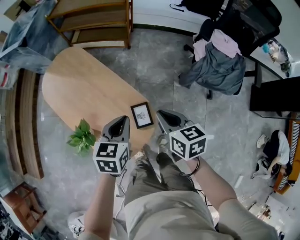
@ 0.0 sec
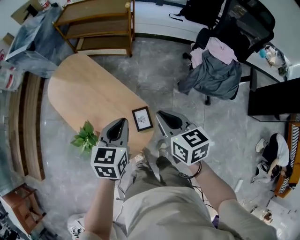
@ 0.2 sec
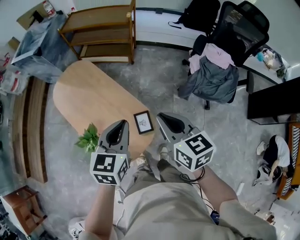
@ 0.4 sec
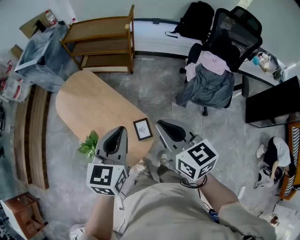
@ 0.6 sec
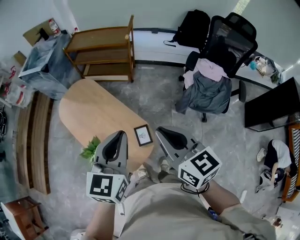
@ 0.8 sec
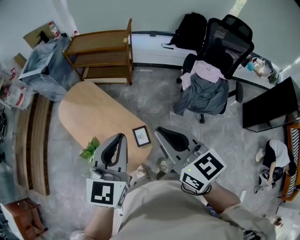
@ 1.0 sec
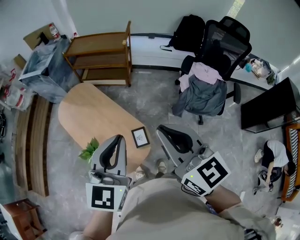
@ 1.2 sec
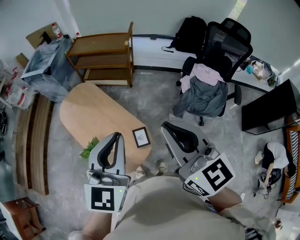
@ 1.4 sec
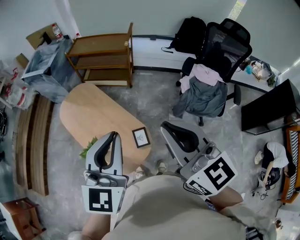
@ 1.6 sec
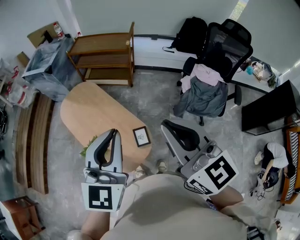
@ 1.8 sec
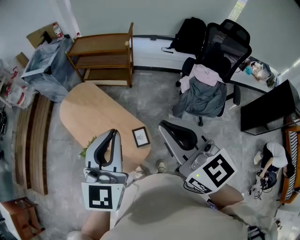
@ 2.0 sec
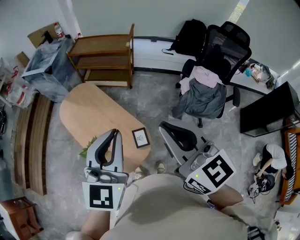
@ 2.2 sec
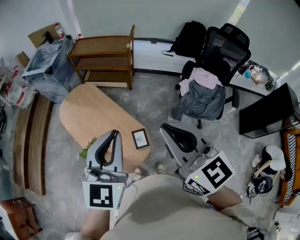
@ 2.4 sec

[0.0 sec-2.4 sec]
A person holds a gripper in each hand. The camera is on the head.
0.0 sec to 1.2 sec: Both grippers travel together upward, roughly 35 cm. The left gripper rotates about 30 degrees; the right gripper changes its angle by approximately 40 degrees.
1.2 sec to 2.4 sec: The grippers move only a little.

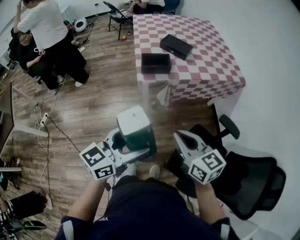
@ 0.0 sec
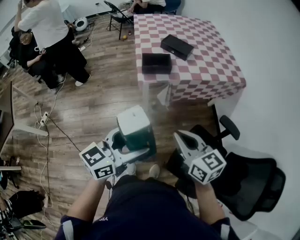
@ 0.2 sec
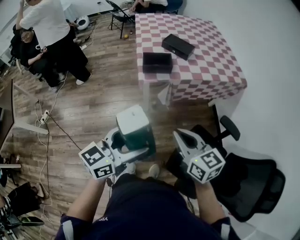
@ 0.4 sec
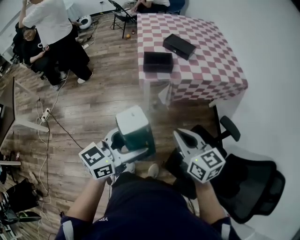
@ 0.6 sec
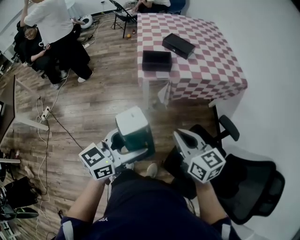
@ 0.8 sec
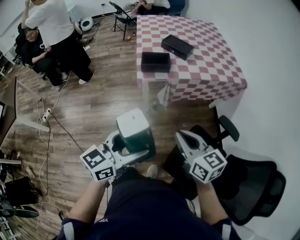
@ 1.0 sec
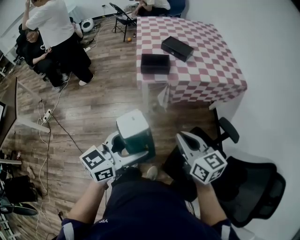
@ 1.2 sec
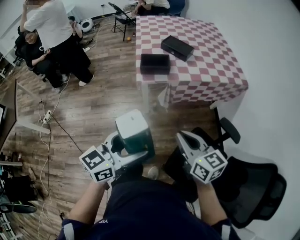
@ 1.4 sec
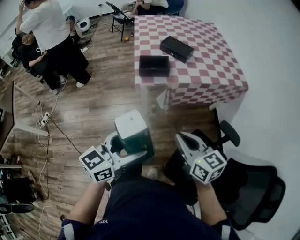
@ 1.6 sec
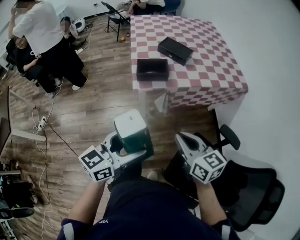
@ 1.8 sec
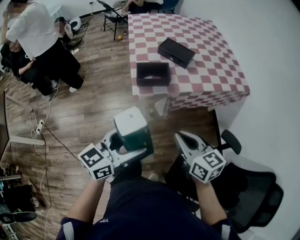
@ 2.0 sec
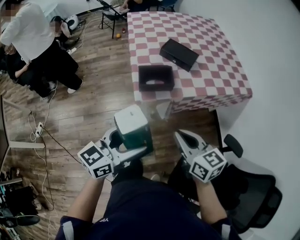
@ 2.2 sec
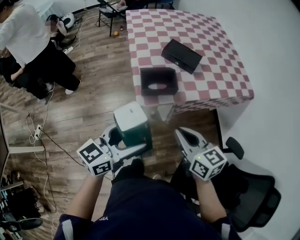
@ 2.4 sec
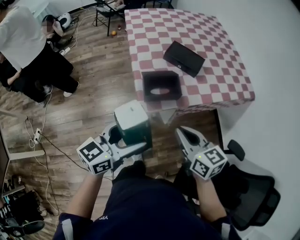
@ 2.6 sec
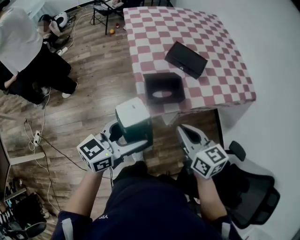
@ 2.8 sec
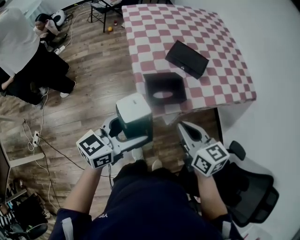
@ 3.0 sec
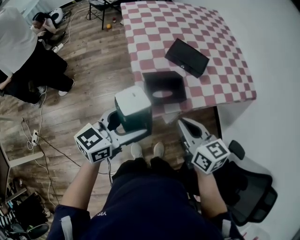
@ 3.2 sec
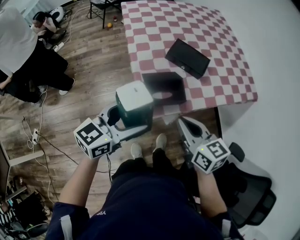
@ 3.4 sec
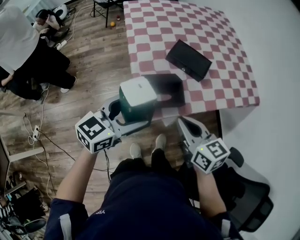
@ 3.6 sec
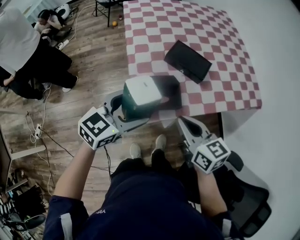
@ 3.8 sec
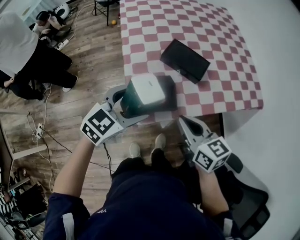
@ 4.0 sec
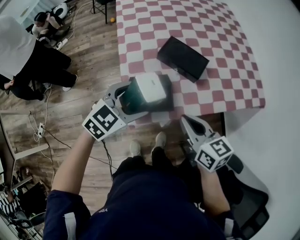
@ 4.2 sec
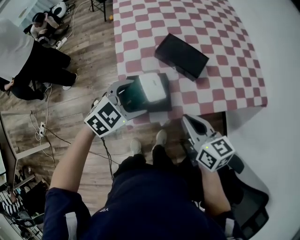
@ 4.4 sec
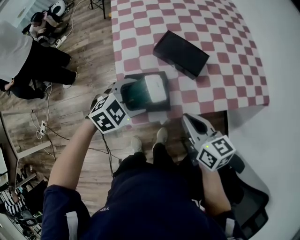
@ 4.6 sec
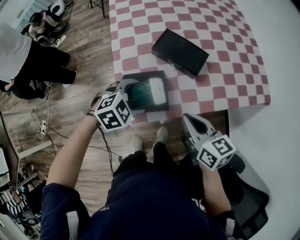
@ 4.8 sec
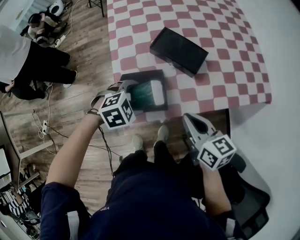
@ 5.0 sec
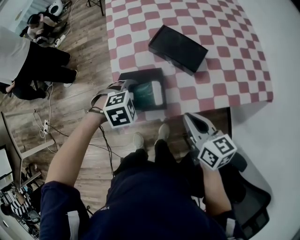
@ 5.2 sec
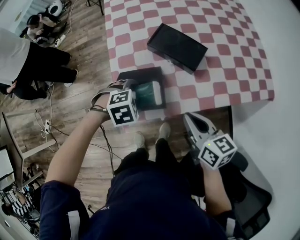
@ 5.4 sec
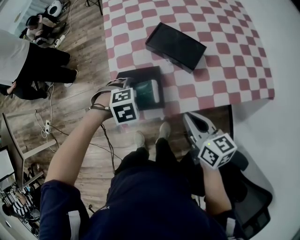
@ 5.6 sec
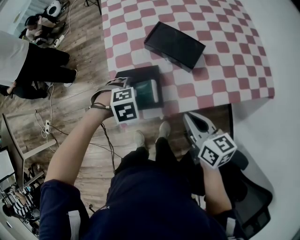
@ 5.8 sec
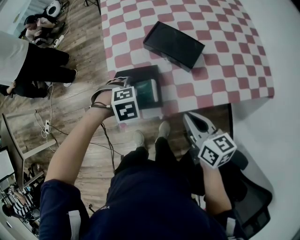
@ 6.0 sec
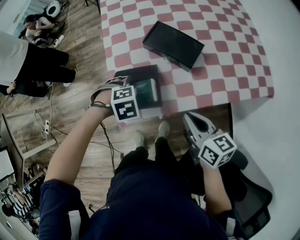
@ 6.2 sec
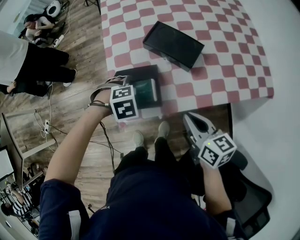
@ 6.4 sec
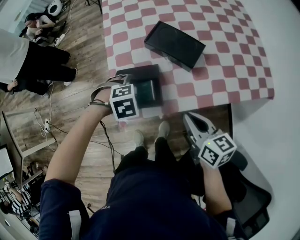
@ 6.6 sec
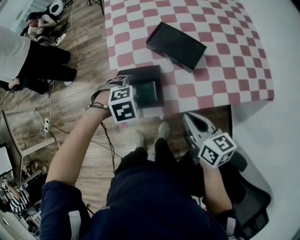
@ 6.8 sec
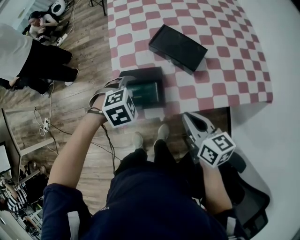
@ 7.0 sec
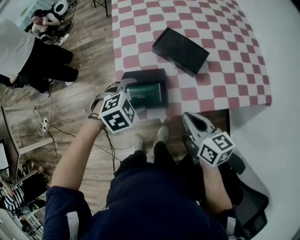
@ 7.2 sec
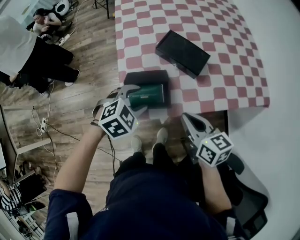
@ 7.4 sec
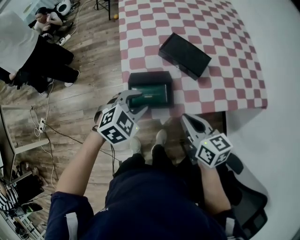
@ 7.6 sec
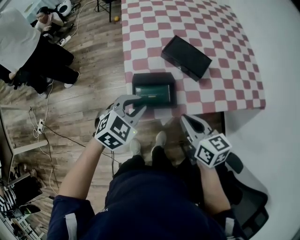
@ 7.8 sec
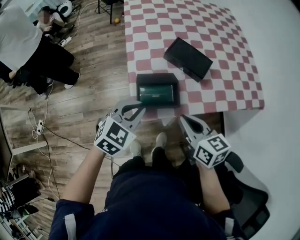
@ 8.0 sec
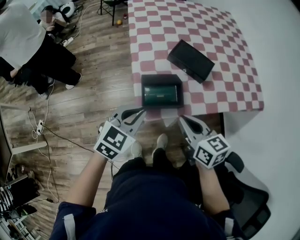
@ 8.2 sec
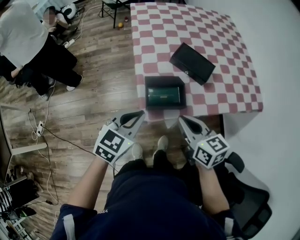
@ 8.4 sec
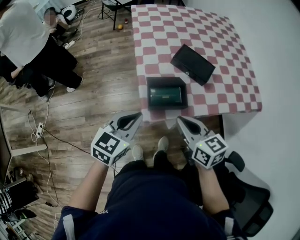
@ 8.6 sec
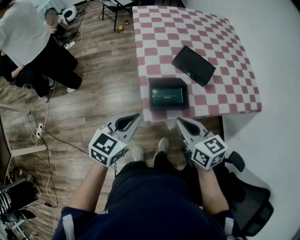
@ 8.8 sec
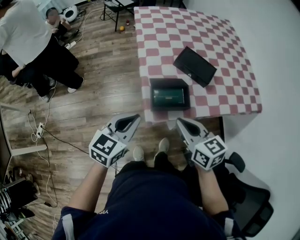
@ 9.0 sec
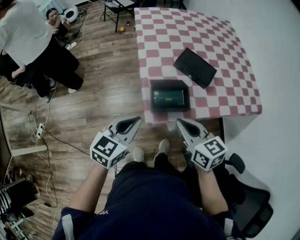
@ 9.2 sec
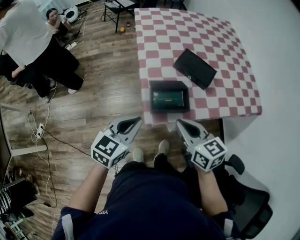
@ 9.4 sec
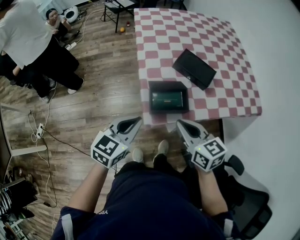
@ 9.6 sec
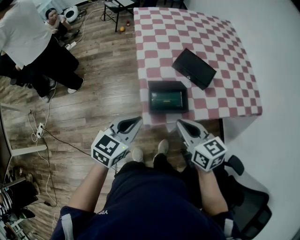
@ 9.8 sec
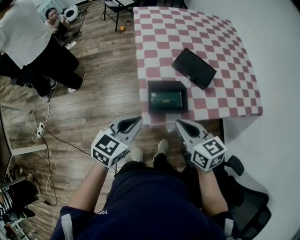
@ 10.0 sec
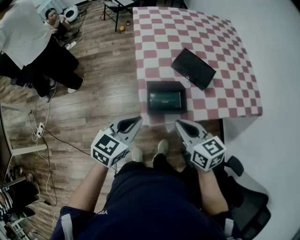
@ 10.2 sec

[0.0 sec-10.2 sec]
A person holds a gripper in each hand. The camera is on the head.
0.0 sec to 1.4 sec: The right gripper is displaced to the right by about 5 cm.
1.4 sec to 3.0 sec: Both grippers travel together forward and to the left, about 35 cm.
3.0 sec to 4.4 sec: The right gripper moves to the right and downward, about 15 cm. The left gripper travels to the right, downward and forward by some 20 cm, and tips its fingers downward by some 30 degrees.
4.4 sec to 5.8 sec: The right gripper changes place by some 10 cm, while the left gripper moves downward, about 10 cm, and points its fingers roughly 40 degrees further downward.
5.8 sec to 7.2 sec: The left gripper moves upward, some 5 cm, and swivels about 20 degrees.
7.2 sec to 8.8 sec: The left gripper moves to the left, backward and upward, about 20 cm, points its fingers about 40 degrees further upward, and closes up. The right gripper moves to the left and backward, approximately 20 cm.
8.8 sec to 10.2 sec: The grippers make only small movements.

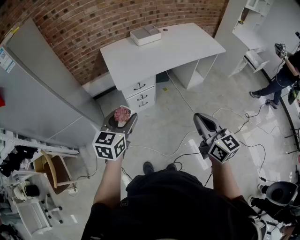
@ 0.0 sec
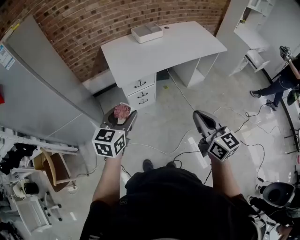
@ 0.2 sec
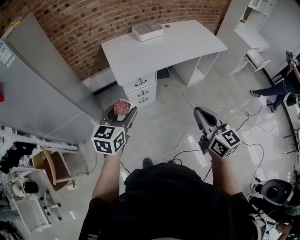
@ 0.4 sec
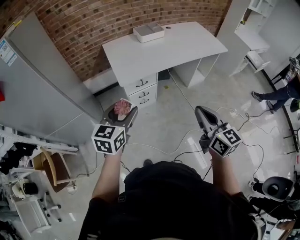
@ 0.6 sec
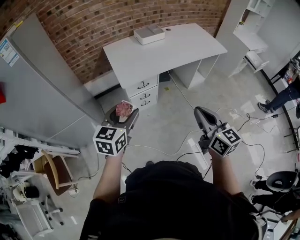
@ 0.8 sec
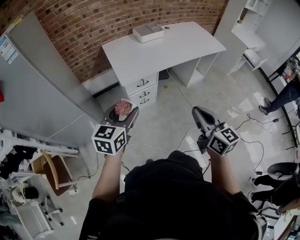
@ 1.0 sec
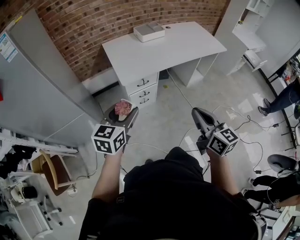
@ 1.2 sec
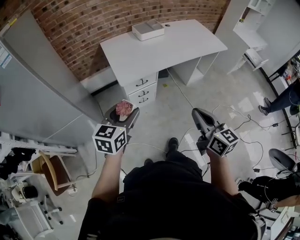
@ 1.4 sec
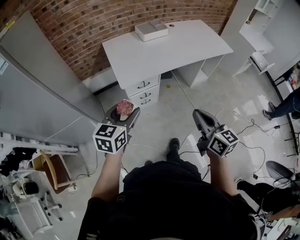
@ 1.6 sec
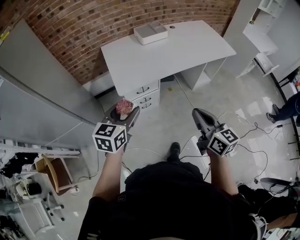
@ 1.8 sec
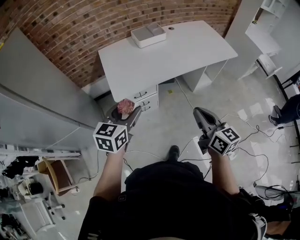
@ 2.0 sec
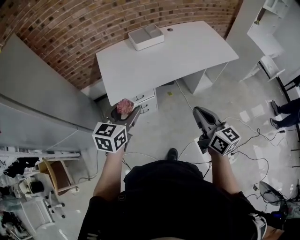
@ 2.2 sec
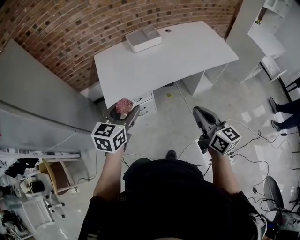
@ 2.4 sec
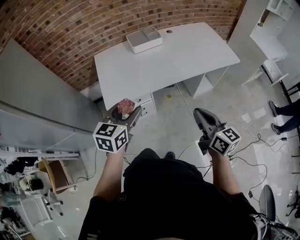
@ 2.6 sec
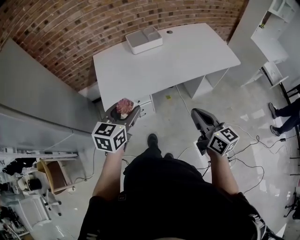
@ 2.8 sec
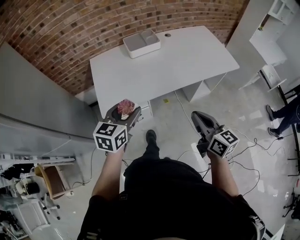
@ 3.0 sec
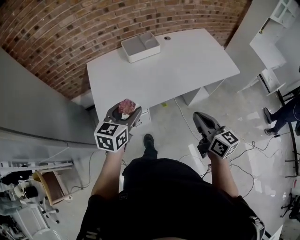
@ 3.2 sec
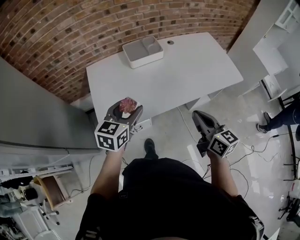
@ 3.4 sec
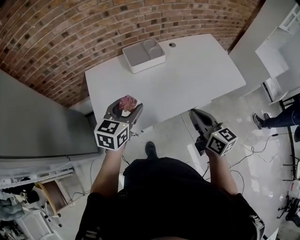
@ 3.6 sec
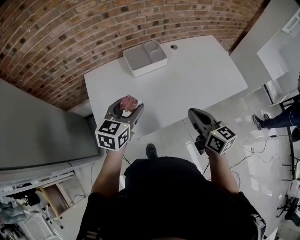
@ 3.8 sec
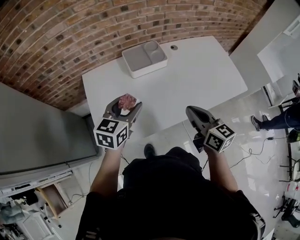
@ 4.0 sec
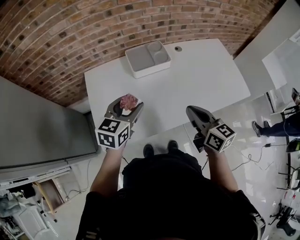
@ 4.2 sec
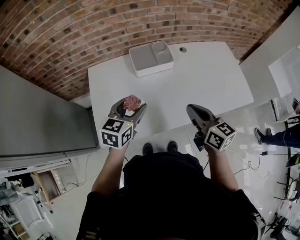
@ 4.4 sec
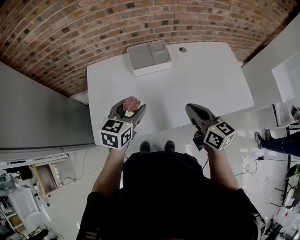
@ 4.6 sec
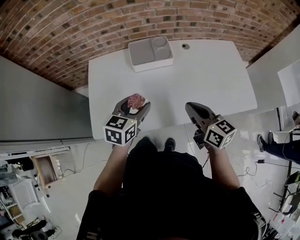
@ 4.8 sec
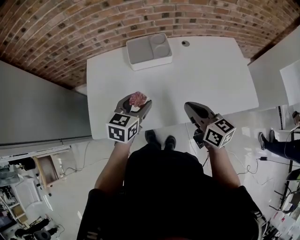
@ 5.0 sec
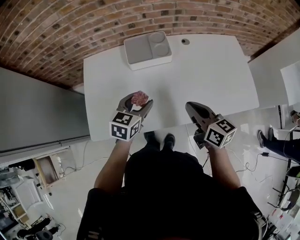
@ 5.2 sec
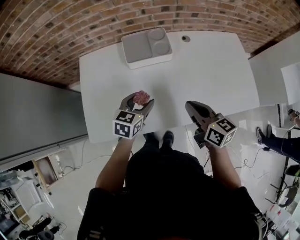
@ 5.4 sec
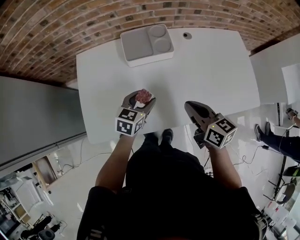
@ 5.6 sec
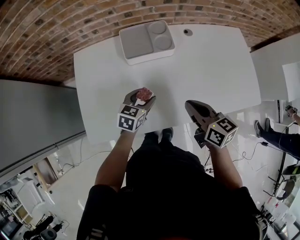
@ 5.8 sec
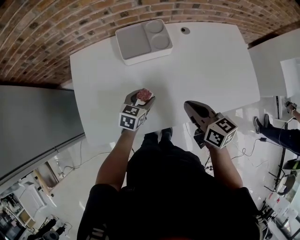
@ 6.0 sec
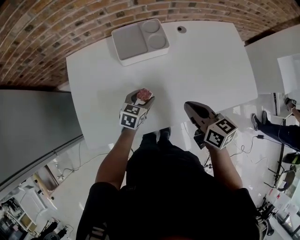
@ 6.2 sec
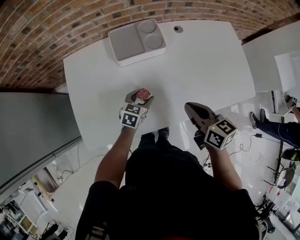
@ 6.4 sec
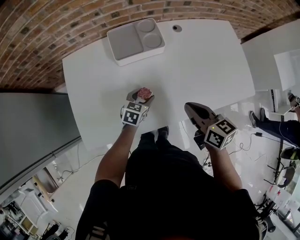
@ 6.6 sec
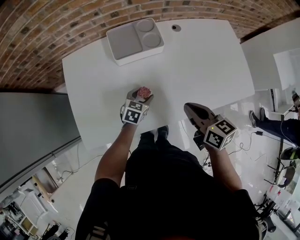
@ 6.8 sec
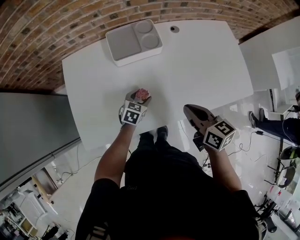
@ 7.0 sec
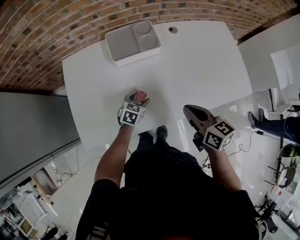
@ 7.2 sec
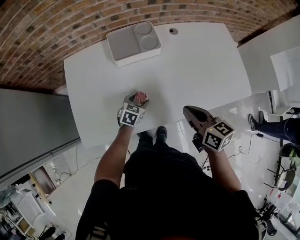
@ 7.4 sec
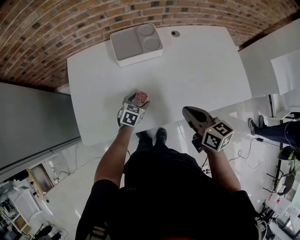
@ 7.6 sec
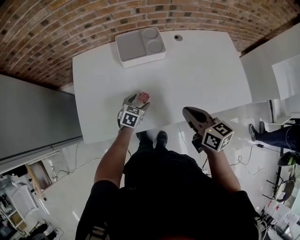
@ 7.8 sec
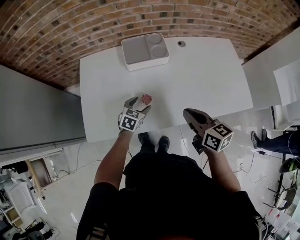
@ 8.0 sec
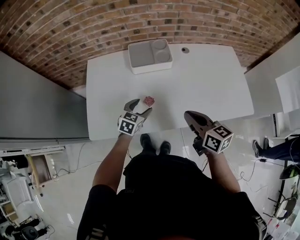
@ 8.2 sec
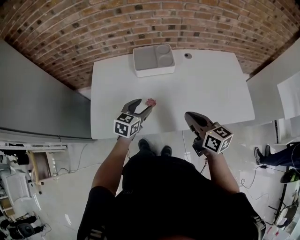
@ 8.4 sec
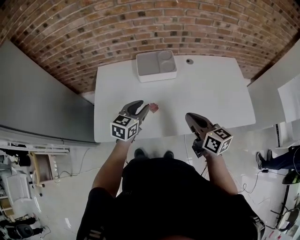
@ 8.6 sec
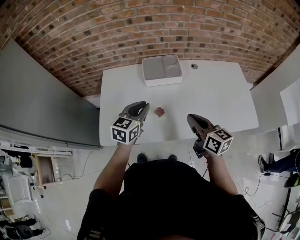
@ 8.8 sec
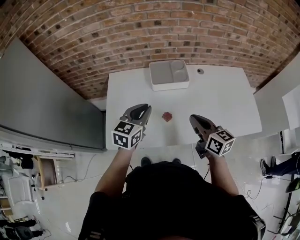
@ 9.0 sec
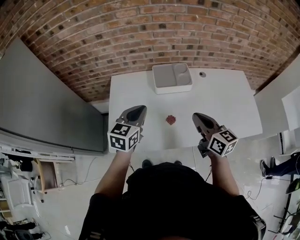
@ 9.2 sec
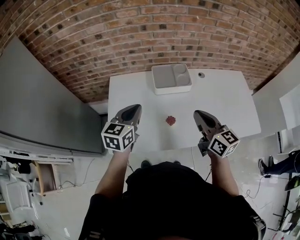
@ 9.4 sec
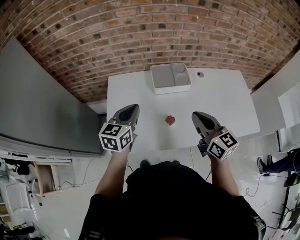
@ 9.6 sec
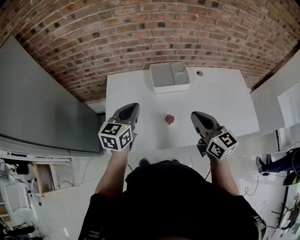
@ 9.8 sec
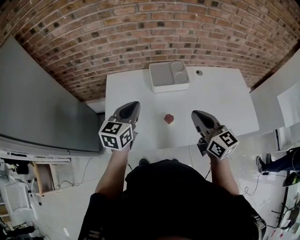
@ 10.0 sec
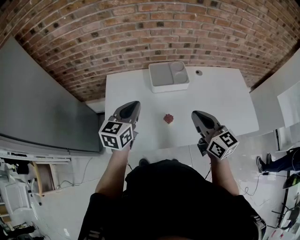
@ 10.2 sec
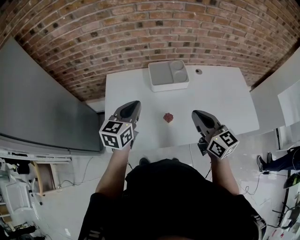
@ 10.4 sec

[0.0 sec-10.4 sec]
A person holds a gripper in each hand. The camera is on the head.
0.0 sec to 1.4 sec: The right gripper is displaced to the left by about 5 cm; the left gripper ends up roughly 5 cm from where it was.
1.4 sec to 3.0 sec: The grippers both shift forward and to the right by some 30 cm.
3.0 sec to 4.4 sec: The two grippers go about 30 cm forward.
4.4 sec to 6.0 sec: The left gripper moves downward and to the right, some 20 cm, while the right gripper is displaced downward and forward by approximately 10 cm.
6.0 sec to 7.4 sec: The left gripper moves downward, roughly 5 cm; the right gripper shifts by roughly 5 cm.
7.4 sec to 9.0 sec: The right gripper heads upward and to the left, covering about 10 cm, while the left gripper travels upward by approximately 30 cm, swivels approximately 30 degrees, and closes.
9.0 sec to 10.4 sec: The right gripper goes roughly 5 cm upward. Meanwhile the left gripper shifts some 5 cm to the left.
